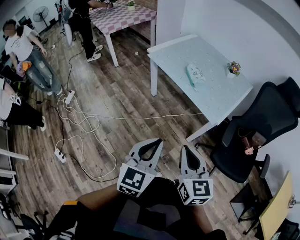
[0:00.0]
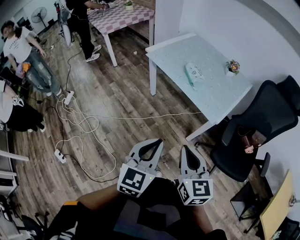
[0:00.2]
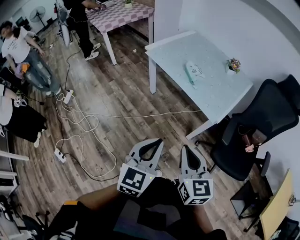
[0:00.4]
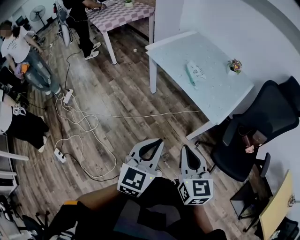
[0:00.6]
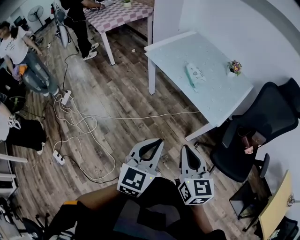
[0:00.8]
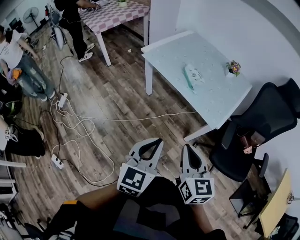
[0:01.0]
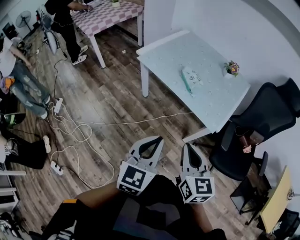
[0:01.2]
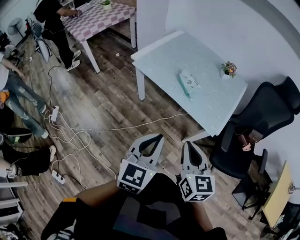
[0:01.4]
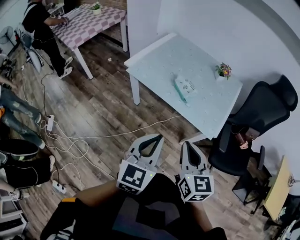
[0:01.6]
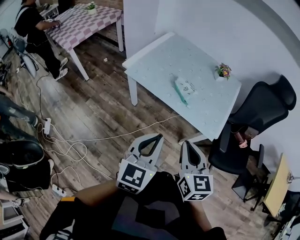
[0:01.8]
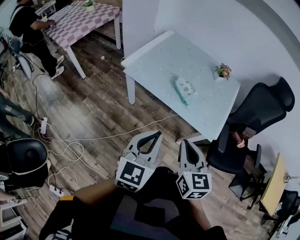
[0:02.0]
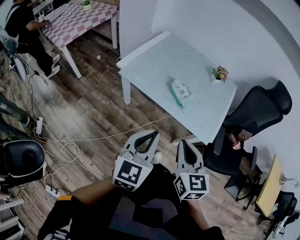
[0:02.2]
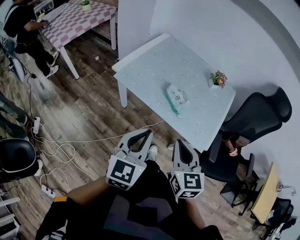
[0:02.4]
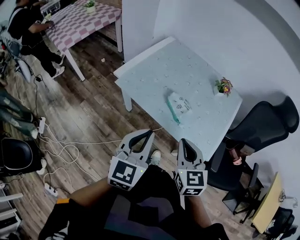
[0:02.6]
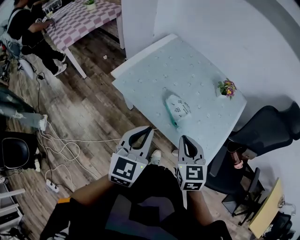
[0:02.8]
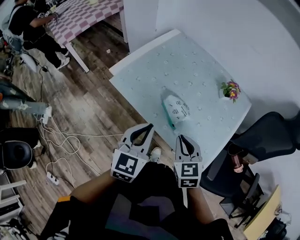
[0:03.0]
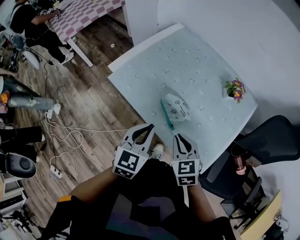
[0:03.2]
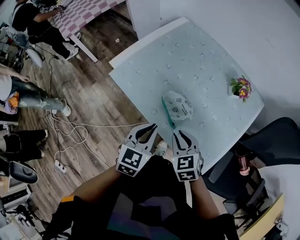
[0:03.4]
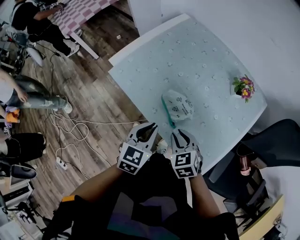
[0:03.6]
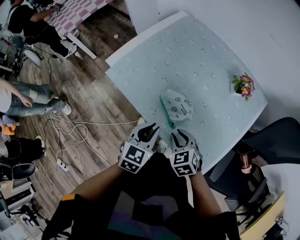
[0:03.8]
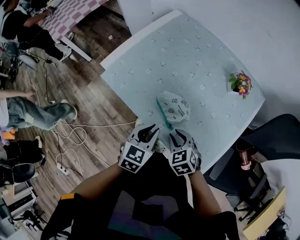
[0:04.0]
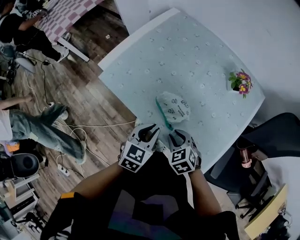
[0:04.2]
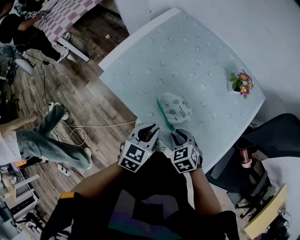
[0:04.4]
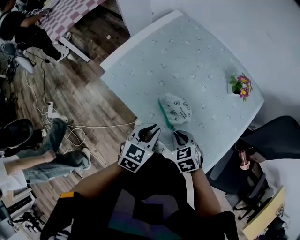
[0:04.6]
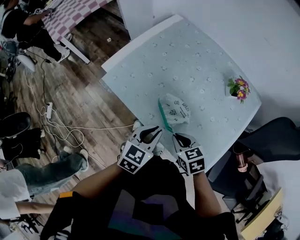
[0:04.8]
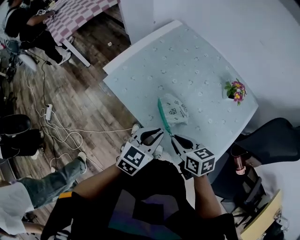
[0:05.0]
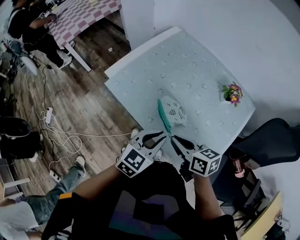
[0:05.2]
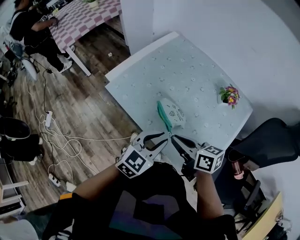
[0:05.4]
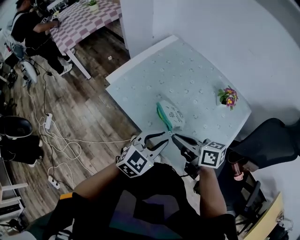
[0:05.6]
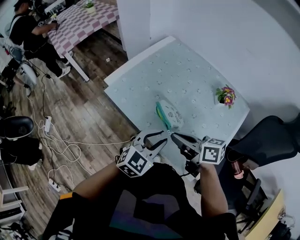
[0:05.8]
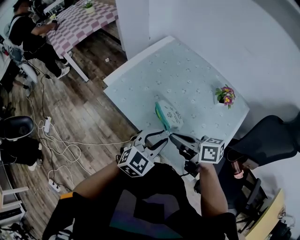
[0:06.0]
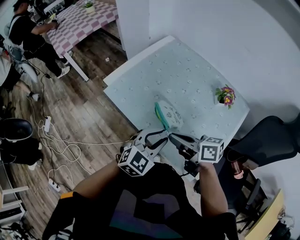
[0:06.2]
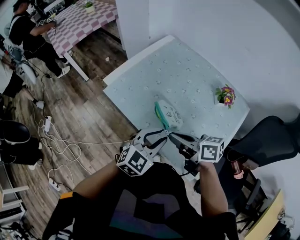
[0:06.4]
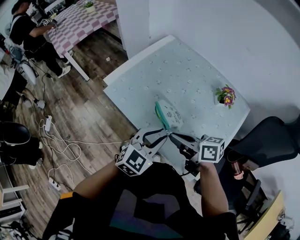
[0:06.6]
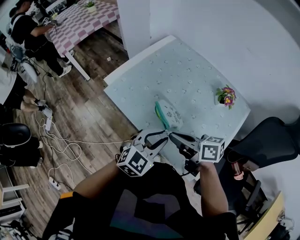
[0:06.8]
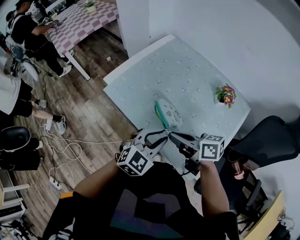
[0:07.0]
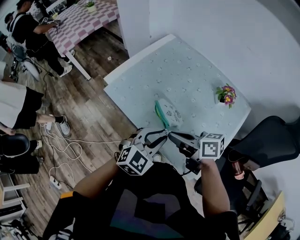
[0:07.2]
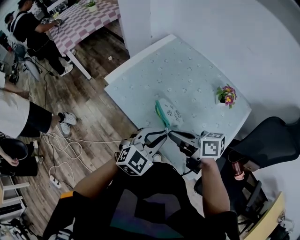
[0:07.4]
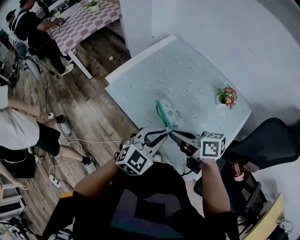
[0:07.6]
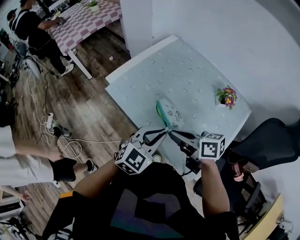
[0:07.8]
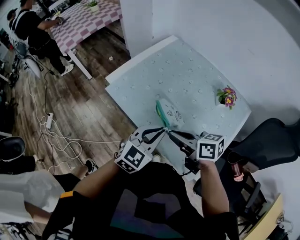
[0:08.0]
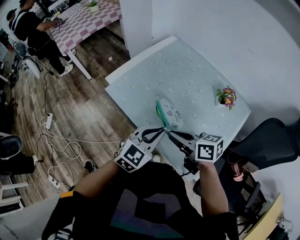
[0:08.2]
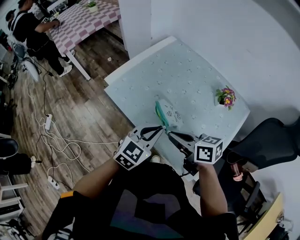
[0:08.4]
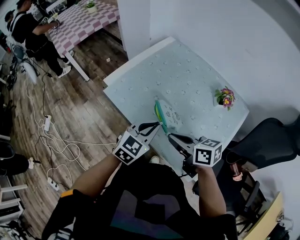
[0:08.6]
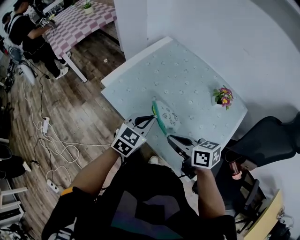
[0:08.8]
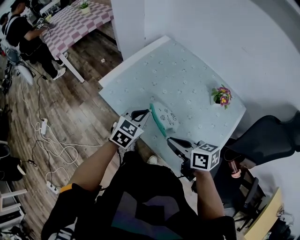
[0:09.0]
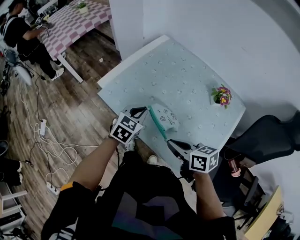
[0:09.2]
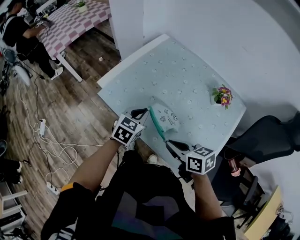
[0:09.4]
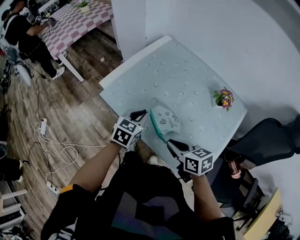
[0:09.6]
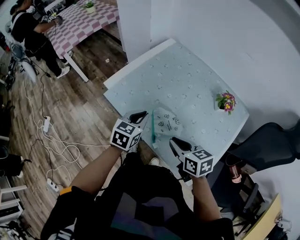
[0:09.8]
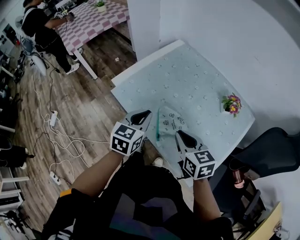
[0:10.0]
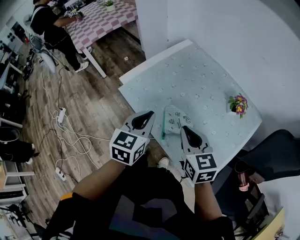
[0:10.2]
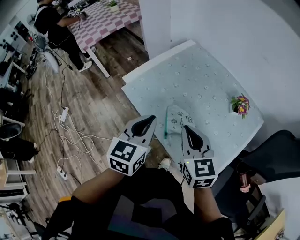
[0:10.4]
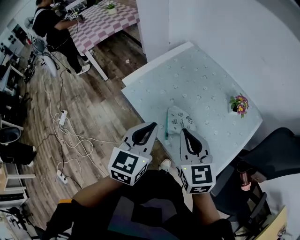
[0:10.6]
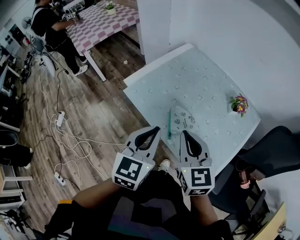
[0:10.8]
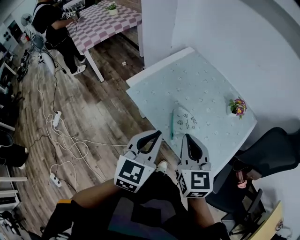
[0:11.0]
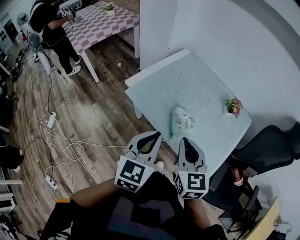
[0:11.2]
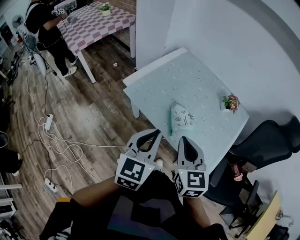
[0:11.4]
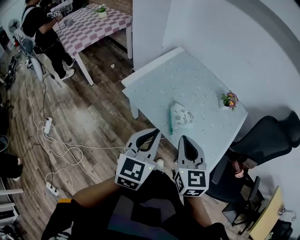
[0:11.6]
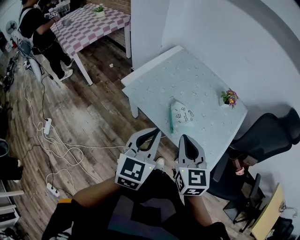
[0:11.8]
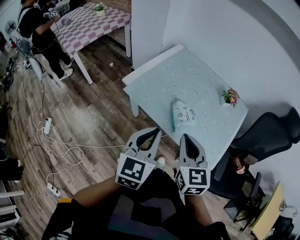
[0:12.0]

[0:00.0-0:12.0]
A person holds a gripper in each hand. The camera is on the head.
0:00.0 to 0:01.6: The grippers both shift forward by approximately 20 cm.
0:01.6 to 0:03.0: The left gripper moves forward, roughly 25 cm. Meanwhile the right gripper travels forward and downward by about 30 cm, and swivels approximately 20 degrees.
0:03.0 to 0:04.4: Both grippers travel together downward, some 15 cm. The right gripper changes its angle by some 30 degrees, and opens, while the left gripper turns by some 20 degrees.
0:04.4 to 0:06.0: The right gripper moves upward, about 15 cm, and tips its fingers upward by approximately 40 degrees. Meanwhile the left gripper moves upward, about 10 cm, and swivels some 30 degrees.
0:06.0 to 0:07.6: The grippers stay close to where they were, moving slightly.
0:07.6 to 0:09.0: The left gripper travels forward and downward by roughly 15 cm.
0:09.0 to 0:10.4: The right gripper travels upward by approximately 10 cm, and rotates about 40 degrees; the left gripper heads upward and backward, covering some 15 cm, and swivels some 30 degrees.
0:10.4 to 0:12.0: The two grippers go approximately 15 cm backward and to the left.

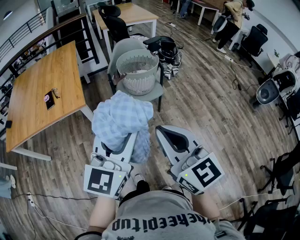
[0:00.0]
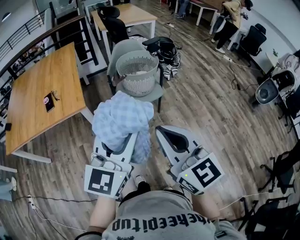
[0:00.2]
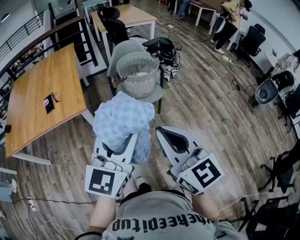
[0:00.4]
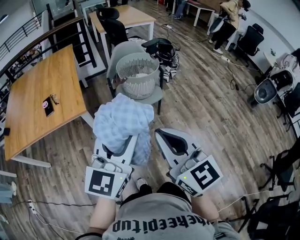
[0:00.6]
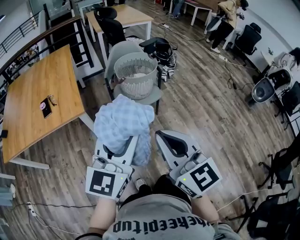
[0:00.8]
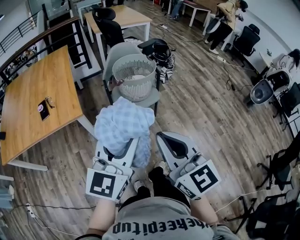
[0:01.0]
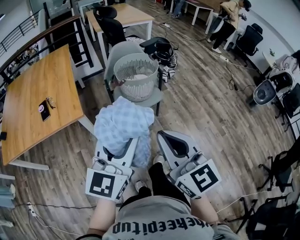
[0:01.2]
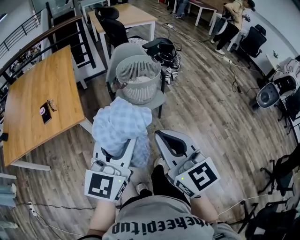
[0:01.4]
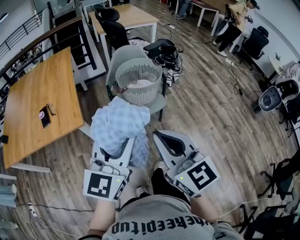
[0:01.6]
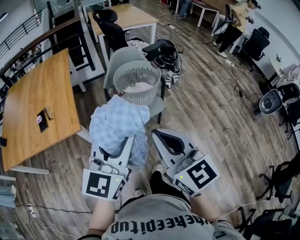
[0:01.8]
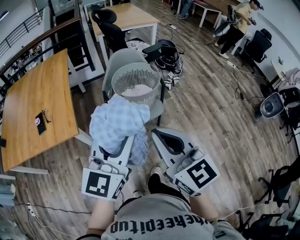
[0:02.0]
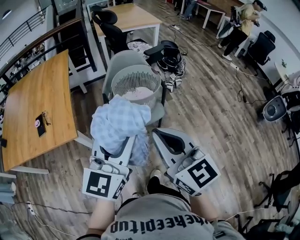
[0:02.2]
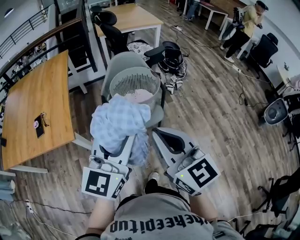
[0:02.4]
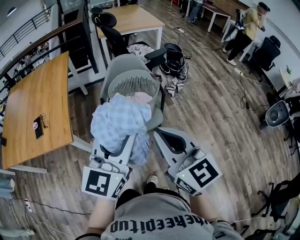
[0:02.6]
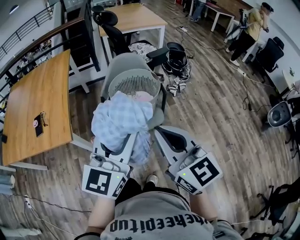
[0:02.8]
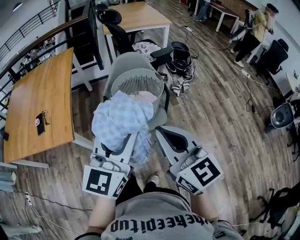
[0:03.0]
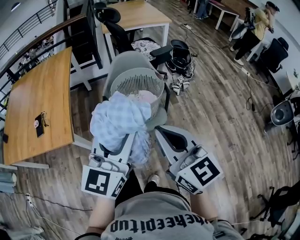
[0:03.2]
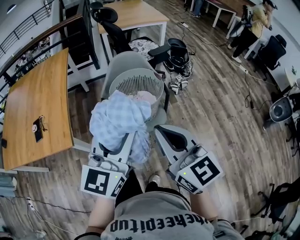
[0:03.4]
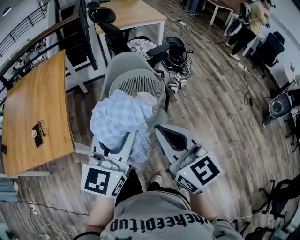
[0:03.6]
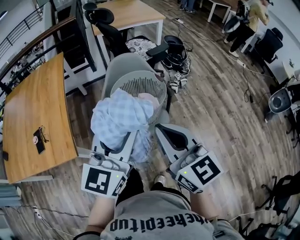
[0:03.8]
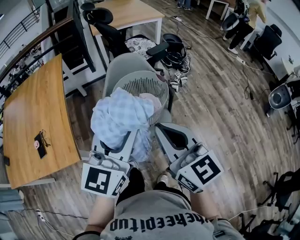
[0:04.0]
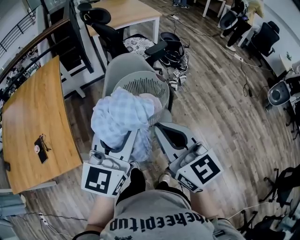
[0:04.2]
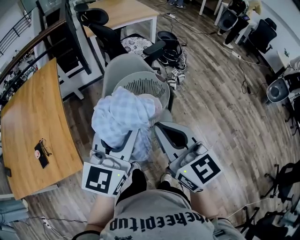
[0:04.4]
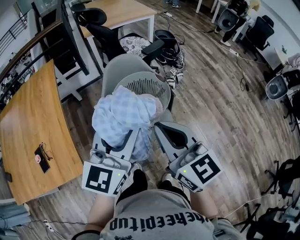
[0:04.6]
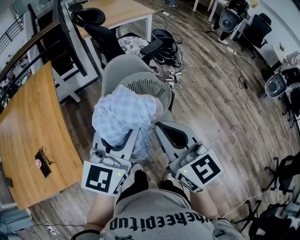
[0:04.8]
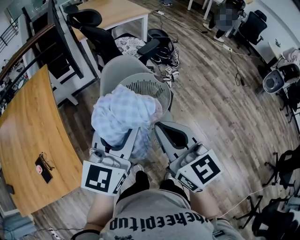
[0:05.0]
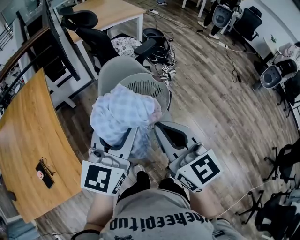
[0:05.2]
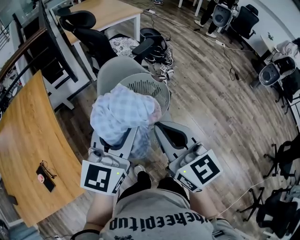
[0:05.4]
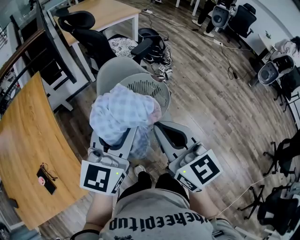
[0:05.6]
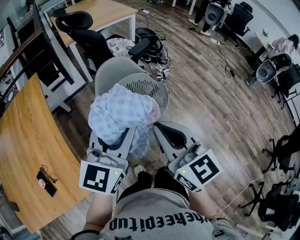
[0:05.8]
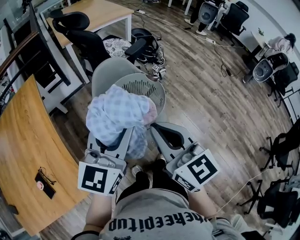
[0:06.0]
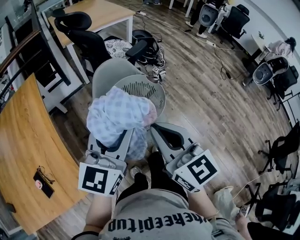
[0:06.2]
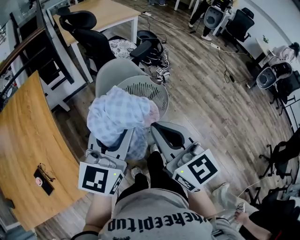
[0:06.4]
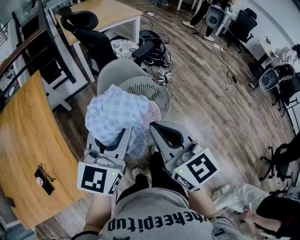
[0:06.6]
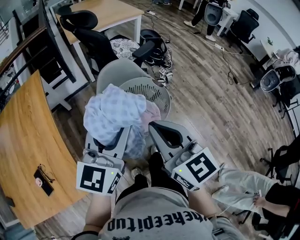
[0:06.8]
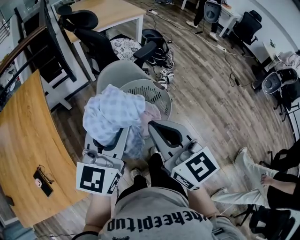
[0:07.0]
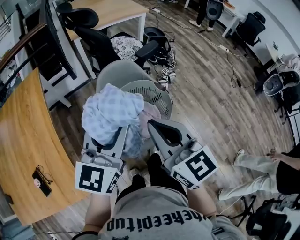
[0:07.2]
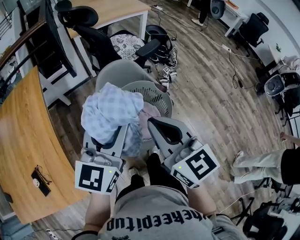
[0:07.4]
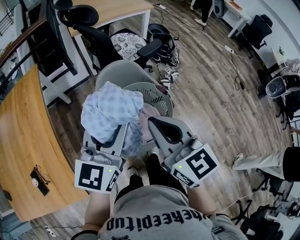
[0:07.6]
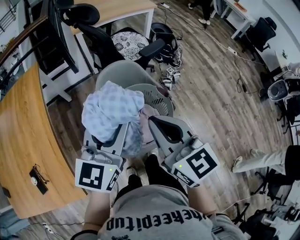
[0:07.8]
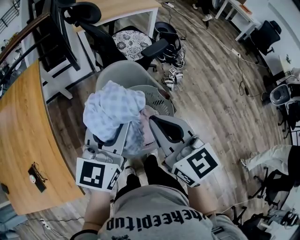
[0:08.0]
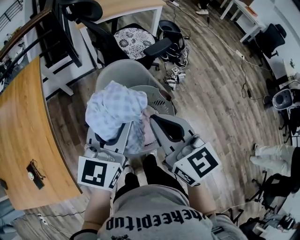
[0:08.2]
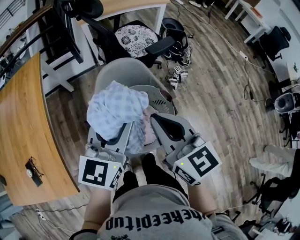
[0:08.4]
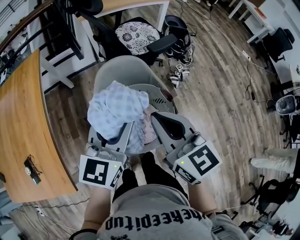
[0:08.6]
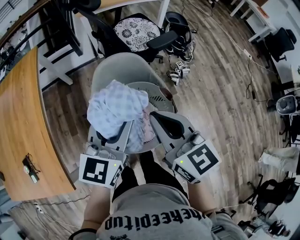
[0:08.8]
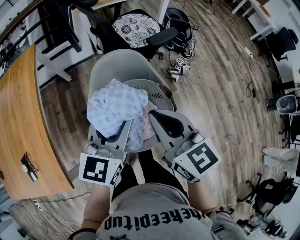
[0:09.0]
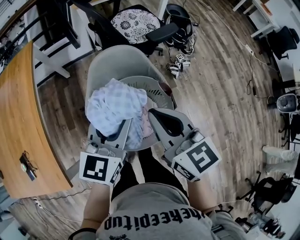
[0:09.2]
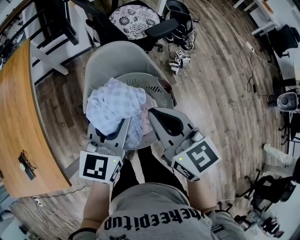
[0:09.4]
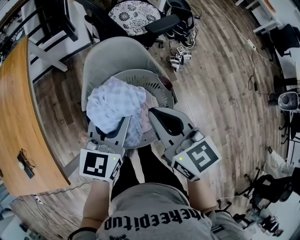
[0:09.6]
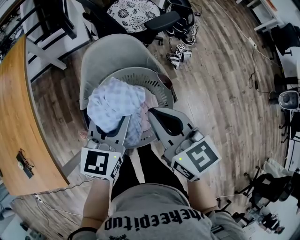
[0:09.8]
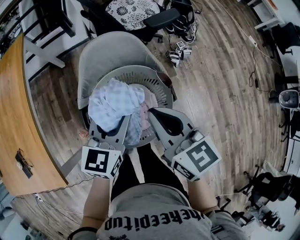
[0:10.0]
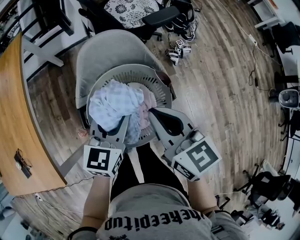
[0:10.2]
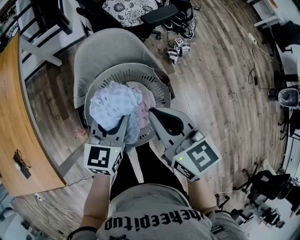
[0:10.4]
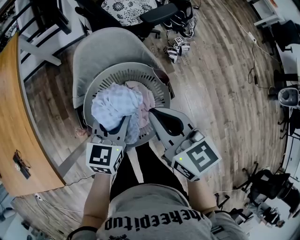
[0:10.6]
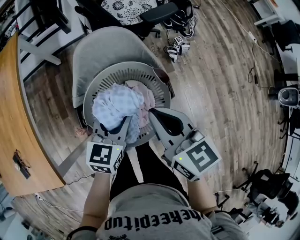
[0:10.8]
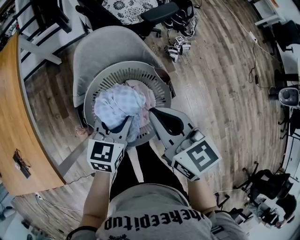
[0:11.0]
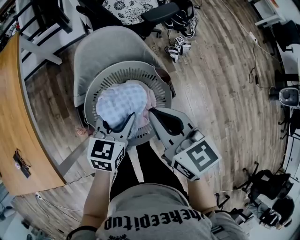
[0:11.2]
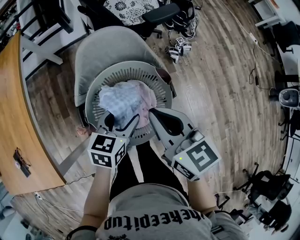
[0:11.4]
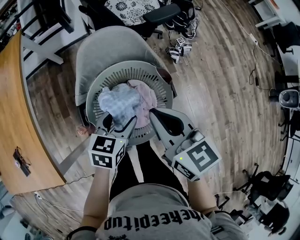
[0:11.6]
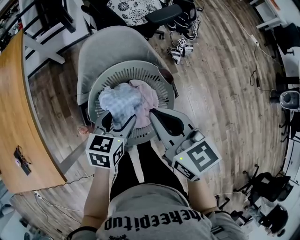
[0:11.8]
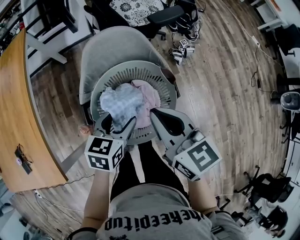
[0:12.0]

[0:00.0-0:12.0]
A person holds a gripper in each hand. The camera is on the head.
0:00.0 to 0:01.6: The two grippers go roughly 10 cm forward.
0:01.6 to 0:03.0: The grippers both shift forward and to the right by about 20 cm.
0:03.0 to 0:04.4: Both grippers move forward and to the left, roughly 15 cm.
0:04.4 to 0:06.0: The right gripper shifts about 5 cm to the left. The left gripper moves to the left and forward, roughly 10 cm.
0:06.0 to 0:07.6: The two grippers go roughly 10 cm forward.
0:07.6 to 0:09.0: The right gripper heads forward and downward, covering some 10 cm. Meanwhile the left gripper moves downward, forward and to the right, approximately 10 cm.
0:09.0 to 0:10.4: The right gripper moves downward, roughly 10 cm. Meanwhile the left gripper travels downward by approximately 15 cm.
0:10.4 to 0:12.0: The left gripper shifts by roughly 5 cm, and opens up.
